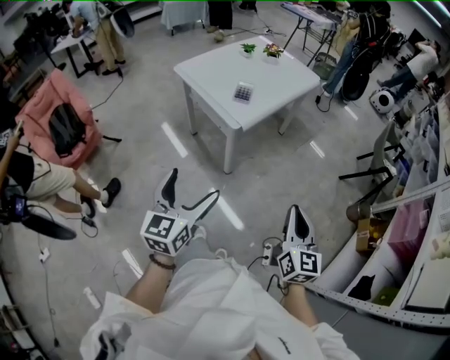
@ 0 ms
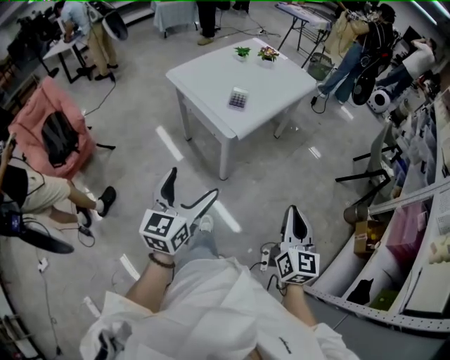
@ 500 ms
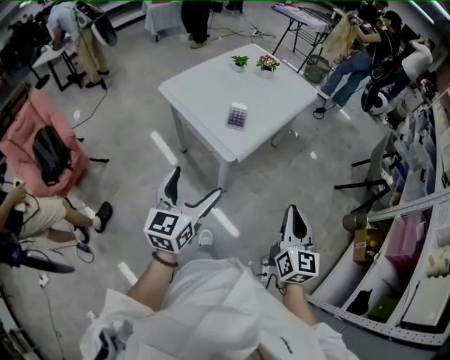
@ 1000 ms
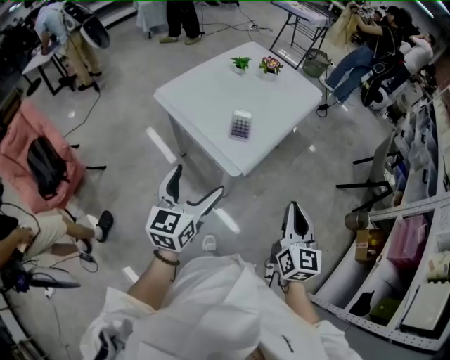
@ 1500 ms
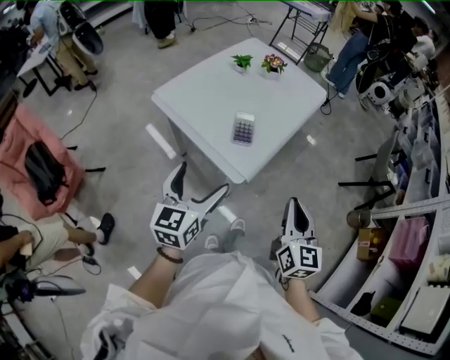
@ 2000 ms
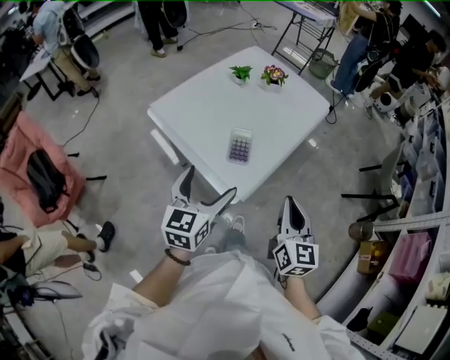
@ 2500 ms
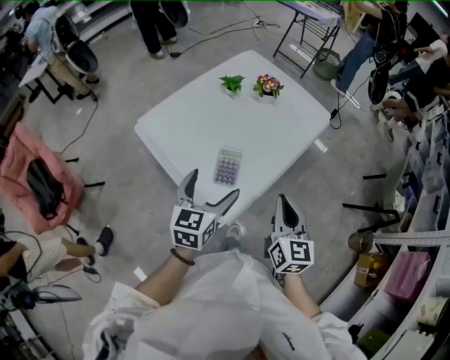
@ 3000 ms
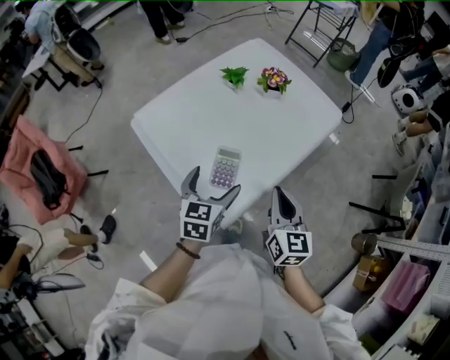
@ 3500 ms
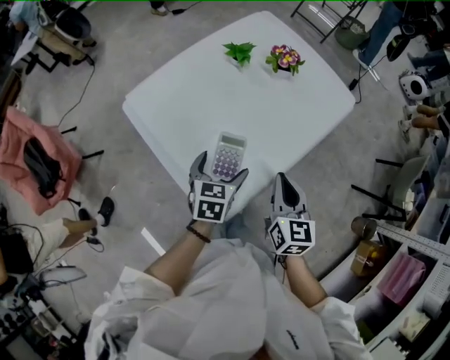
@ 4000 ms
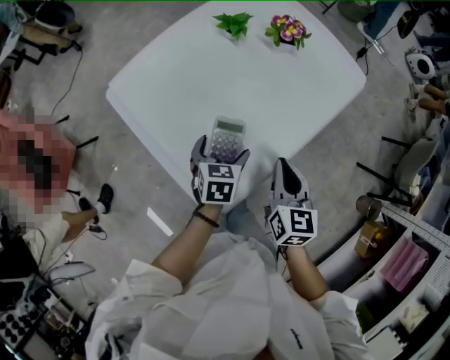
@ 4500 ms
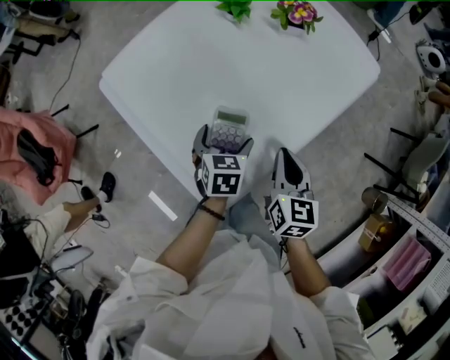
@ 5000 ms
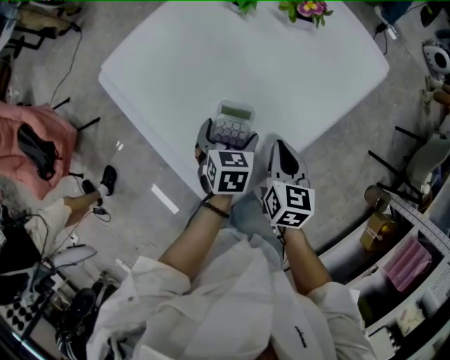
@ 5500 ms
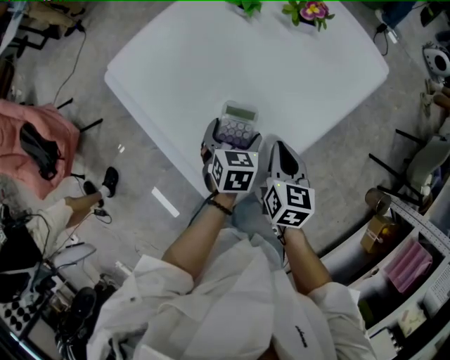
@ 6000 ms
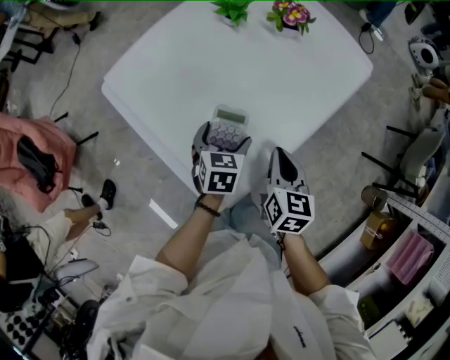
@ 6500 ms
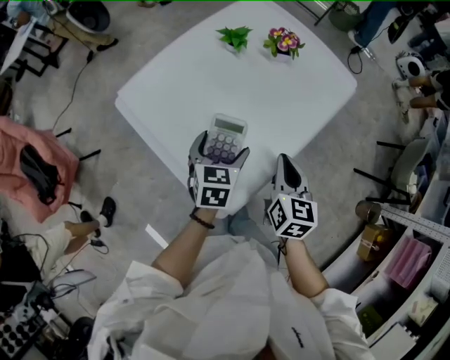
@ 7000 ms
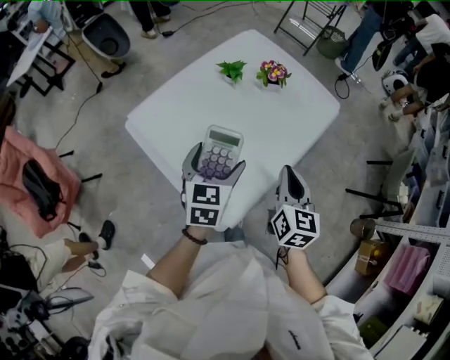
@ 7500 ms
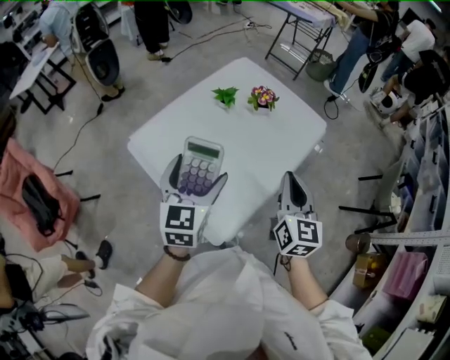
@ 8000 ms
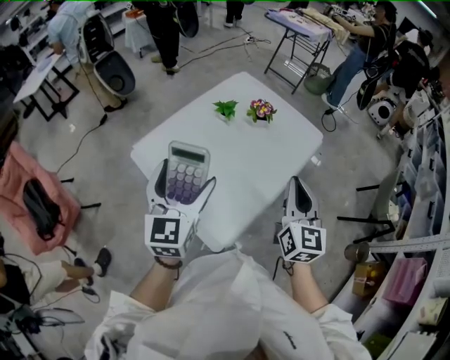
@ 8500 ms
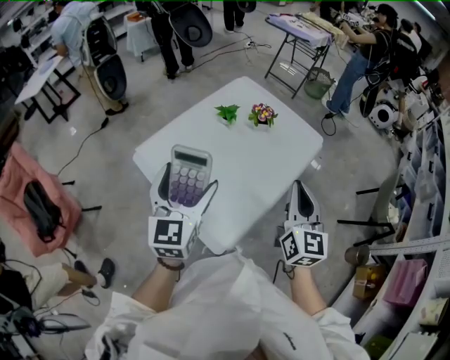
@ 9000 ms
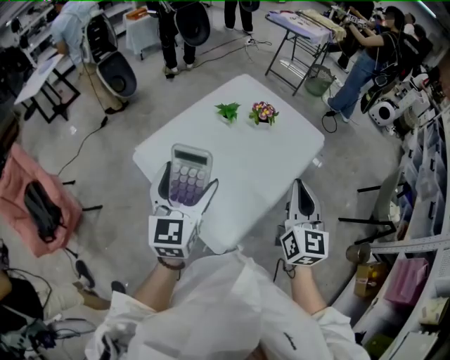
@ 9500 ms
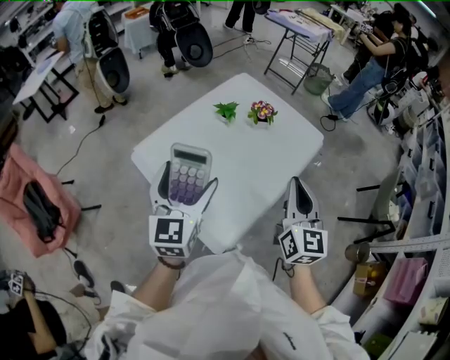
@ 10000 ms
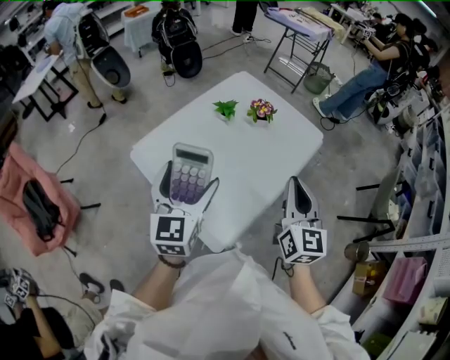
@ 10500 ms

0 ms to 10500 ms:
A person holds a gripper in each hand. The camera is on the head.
0 ms to 2000 ms: The left gripper goes roughly 30 cm forward. Meanwhile the right gripper shifts about 30 cm forward and to the left.
2000 ms to 4000 ms: The left gripper goes approximately 35 cm forward, downward and to the right, and tips its fingers downward by approximately 30 degrees. The right gripper heads forward, covering approximately 30 cm.
4000 ms to 6500 ms: The grippers both shift downward by some 10 cm.
6500 ms to 8500 ms: The grippers both shift upward by approximately 30 cm. The left gripper points its fingers some 40 degrees further upward, while the right gripper angles its fingers upward, by roughly 30 degrees.
8500 ms to 10500 ms: The grippers make only small movements.

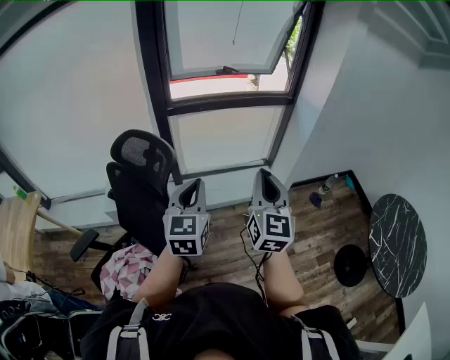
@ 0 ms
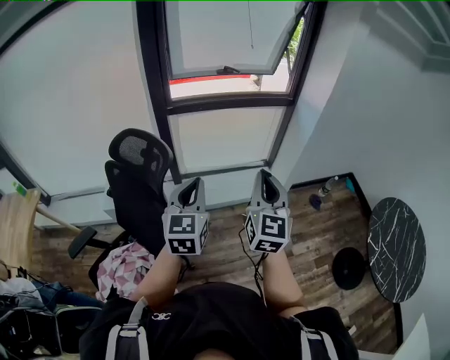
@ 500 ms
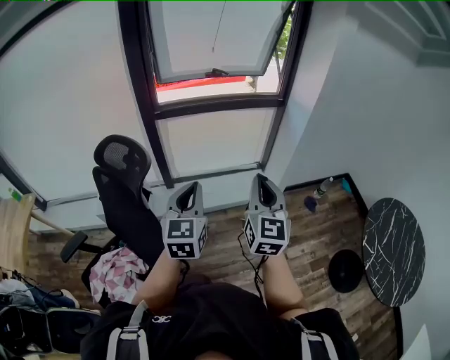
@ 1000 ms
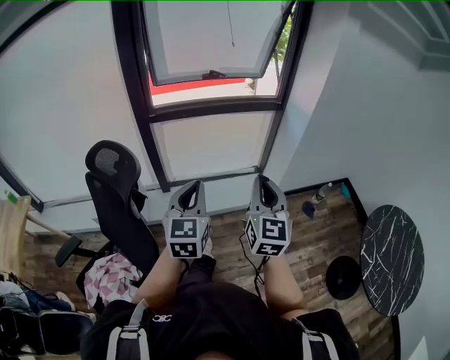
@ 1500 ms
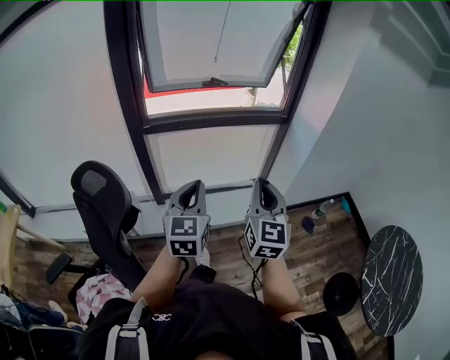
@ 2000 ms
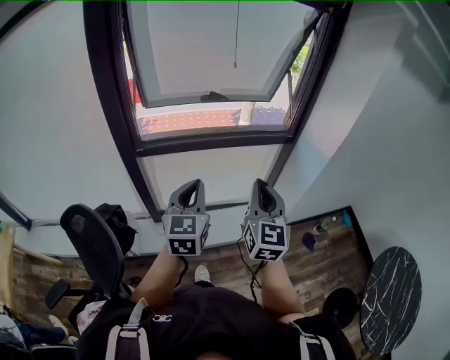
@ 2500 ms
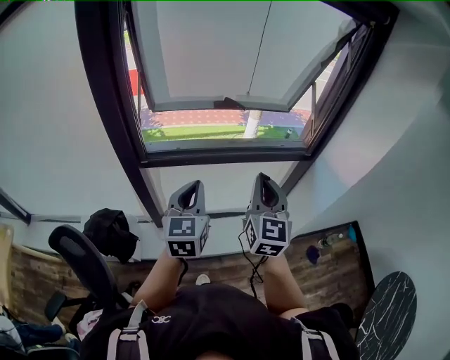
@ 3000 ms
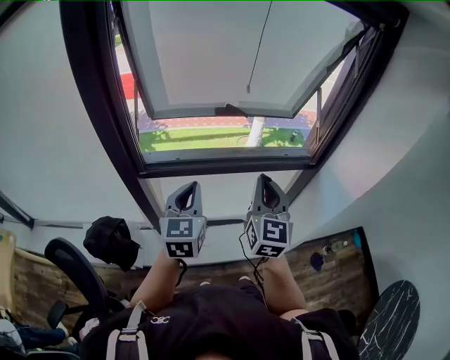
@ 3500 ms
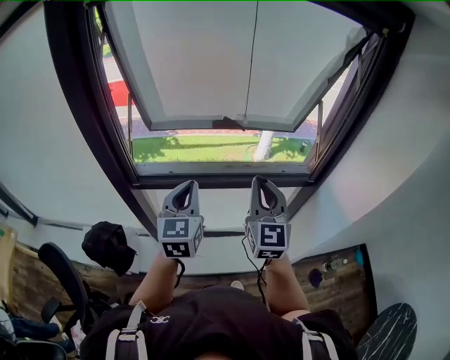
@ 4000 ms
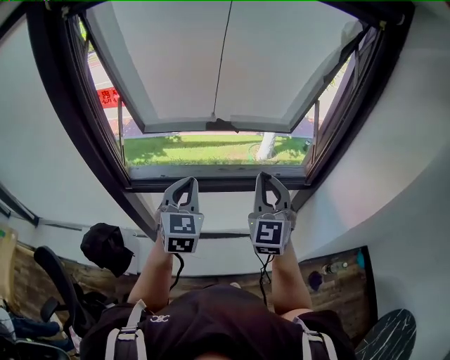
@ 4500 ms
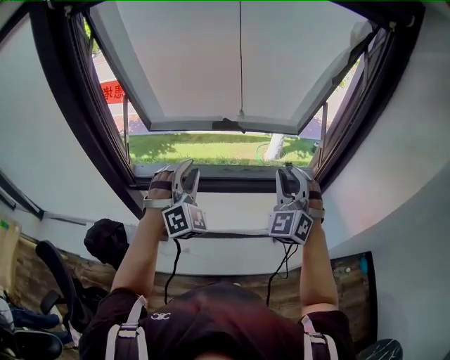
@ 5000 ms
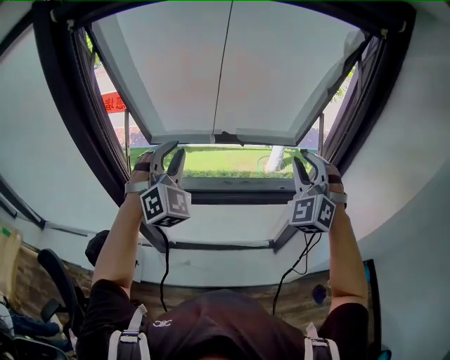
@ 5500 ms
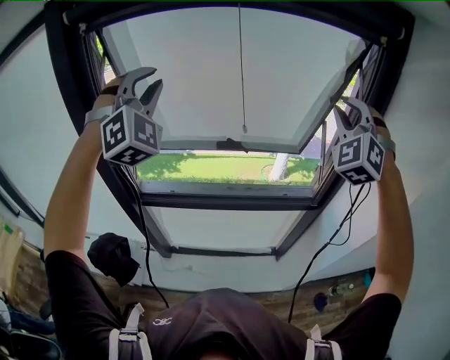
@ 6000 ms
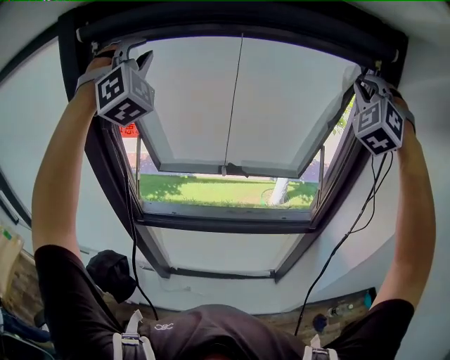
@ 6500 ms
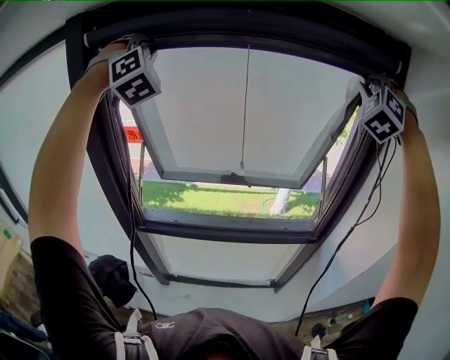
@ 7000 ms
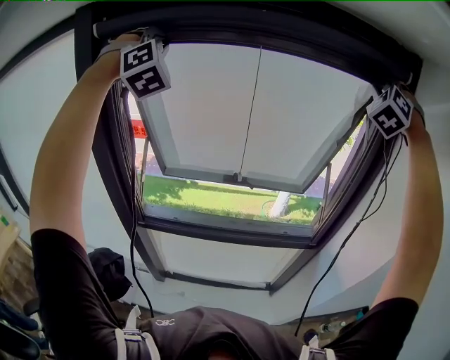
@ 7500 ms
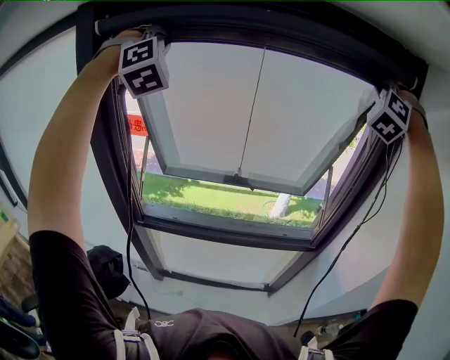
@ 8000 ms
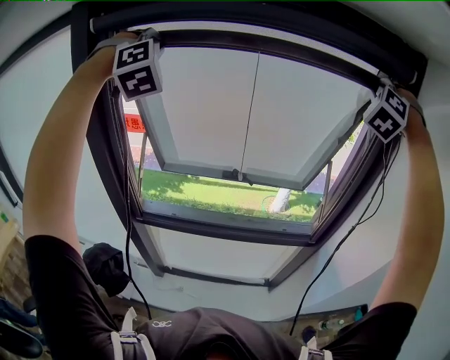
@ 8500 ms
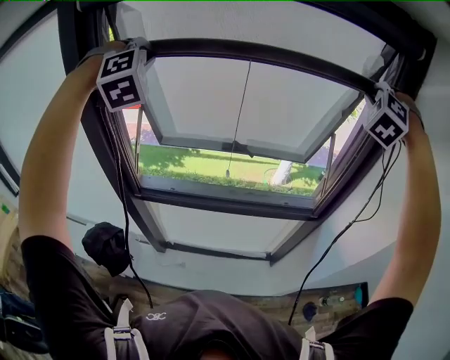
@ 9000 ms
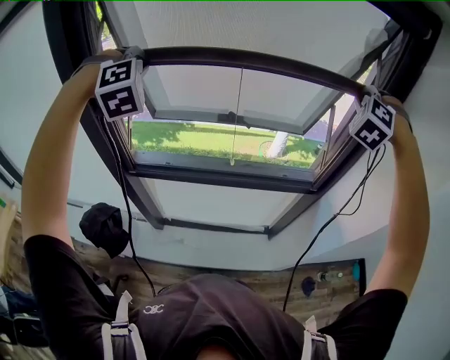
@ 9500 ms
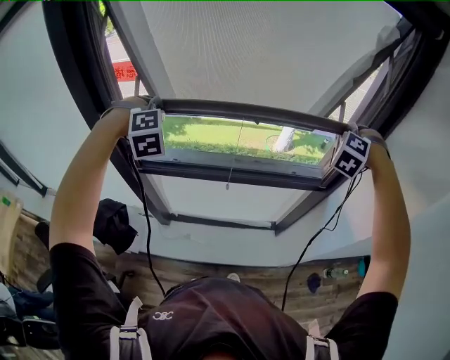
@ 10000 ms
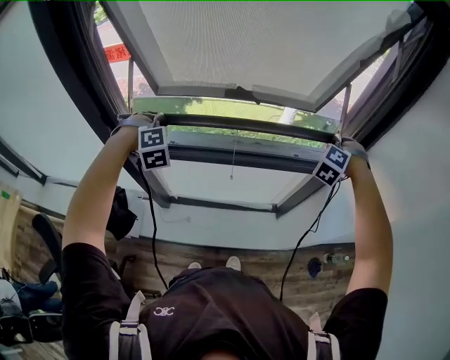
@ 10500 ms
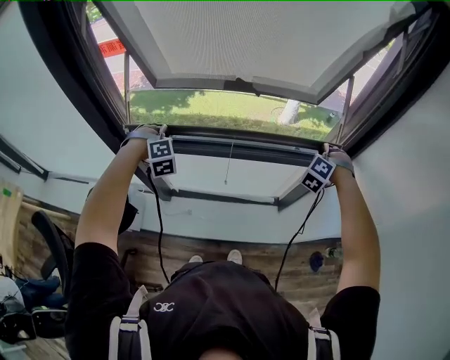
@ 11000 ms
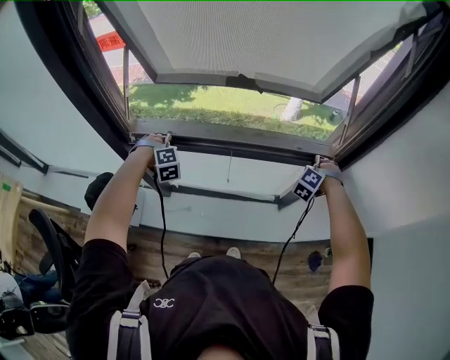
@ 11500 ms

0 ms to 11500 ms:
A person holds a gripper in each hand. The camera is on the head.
0 ms to 2000 ms: The grippers both shift forward and to the right by about 20 cm.
2000 ms to 4000 ms: The pair of grippers is taken forward, roughly 40 cm.
4000 ms to 6000 ms: The left gripper shifts some 30 cm upward, rolls clockwise, seen from behind, by roughly 70 degrees, and opens its fingers; the right gripper travels upward, to the right and forward by approximately 35 cm, and twists about 60 degrees counterclockwise, seen from behind.
6000 ms to 7500 ms: The right gripper goes some 20 cm upward and forward; the left gripper is displaced upward, forward and to the left by approximately 20 cm.
7500 ms to 9500 ms: The two grippers go some 25 cm downward. The left gripper changes its angle by some 30 degrees; the right gripper swivels roughly 30 degrees.
9500 ms to 11500 ms: Both grippers move downward, approximately 50 cm. The right gripper rotates approximately 20 degrees; the left gripper rotates roughly 30 degrees.

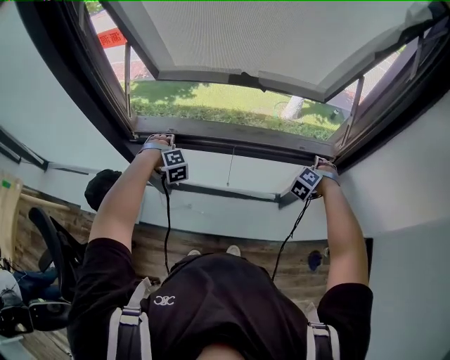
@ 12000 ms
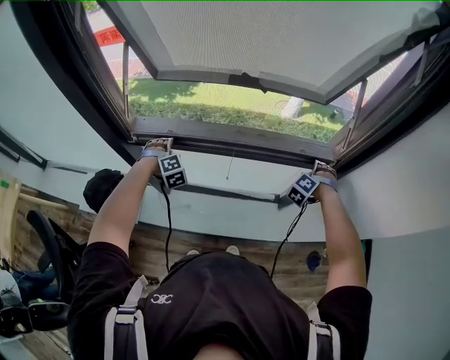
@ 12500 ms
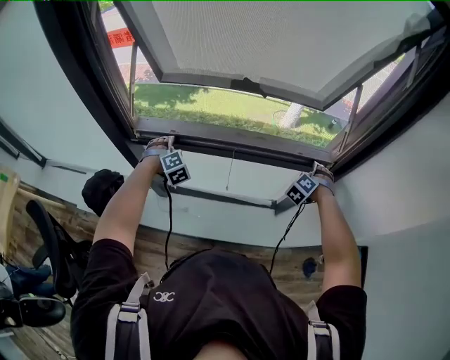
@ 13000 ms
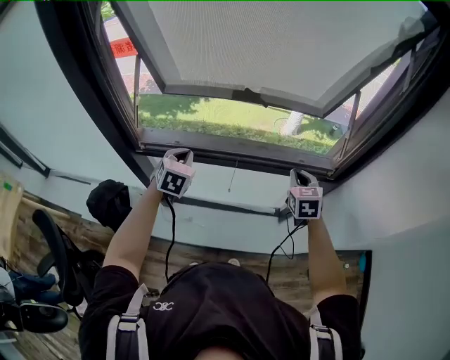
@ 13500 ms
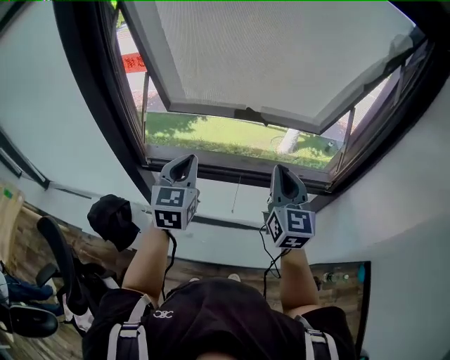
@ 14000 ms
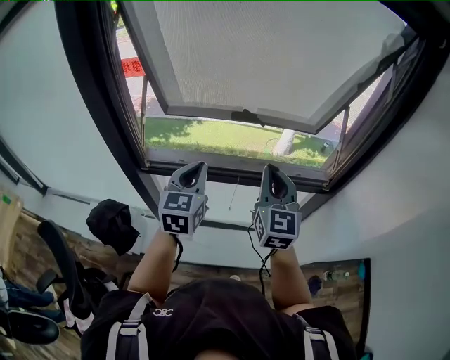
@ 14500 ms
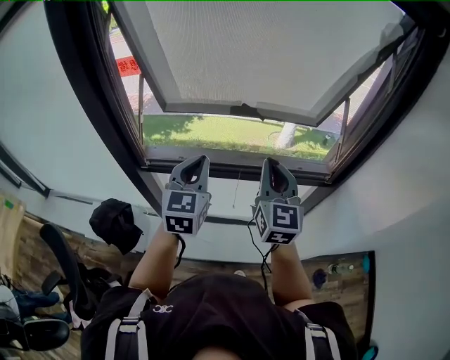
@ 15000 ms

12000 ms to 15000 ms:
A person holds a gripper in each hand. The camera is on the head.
12000 ms to 13500 ms: The left gripper heads upward and to the right, covering some 15 cm, rotates around the line of its fingers by about 60 degrees, counterclockwise from behind, and closes its fingers, while the right gripper travels to the left and upward by some 15 cm, rolls clockwise, seen from behind, by some 60 degrees, and closes.
13500 ms to 15000 ms: The left gripper moves upward and backward, approximately 20 cm, and rotates roughly 30 degrees; the right gripper moves upward and to the left, roughly 25 cm, and tilts its fingers about 30 degrees upward.

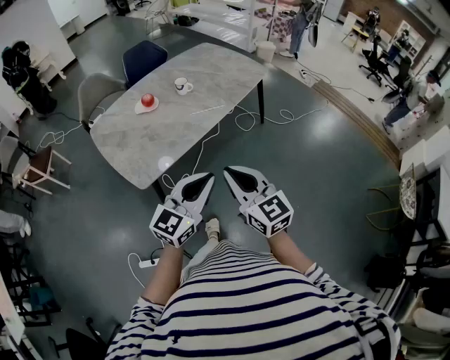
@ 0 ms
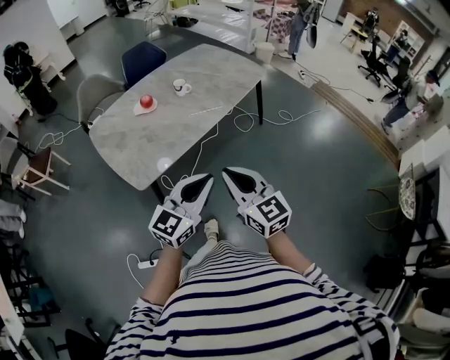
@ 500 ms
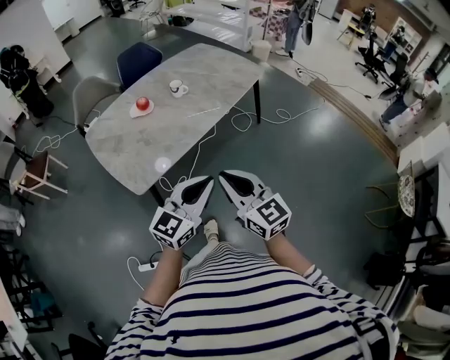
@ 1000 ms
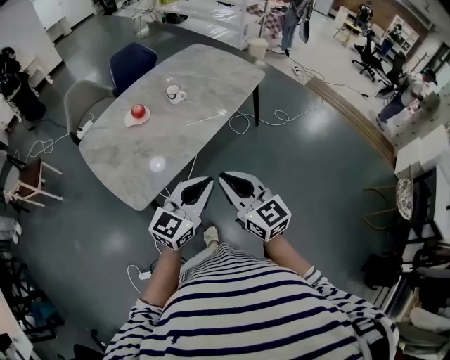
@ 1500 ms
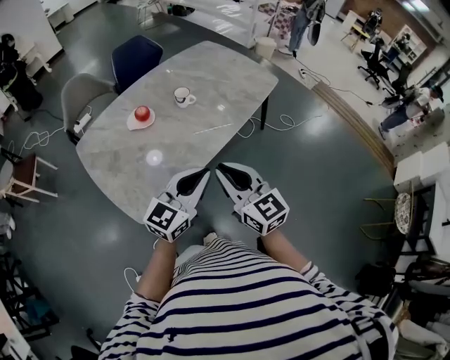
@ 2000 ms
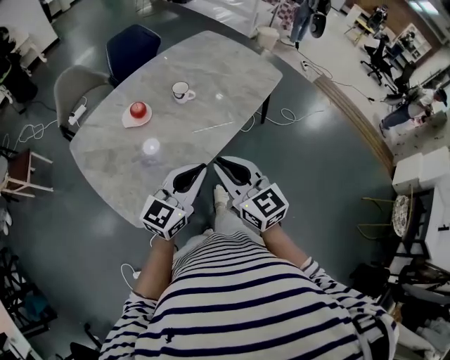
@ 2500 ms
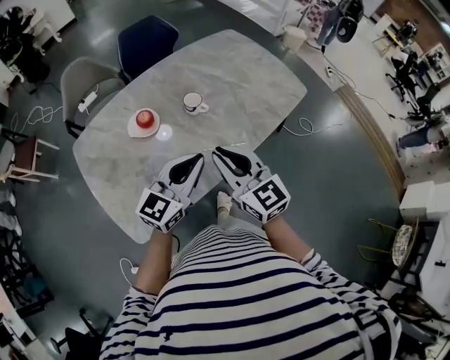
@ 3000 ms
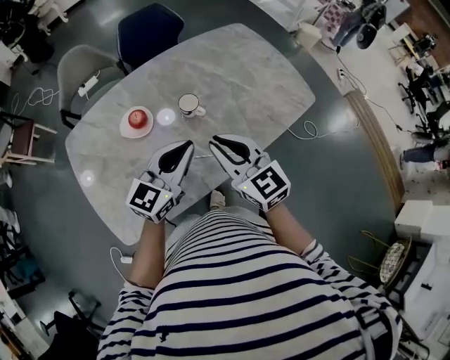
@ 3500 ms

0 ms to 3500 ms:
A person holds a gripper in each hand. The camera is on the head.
0 ms to 2000 ms: The left gripper moves forward, about 20 cm; the right gripper travels forward and to the left by about 20 cm.
2000 ms to 3500 ms: The grippers both shift forward by approximately 30 cm.
